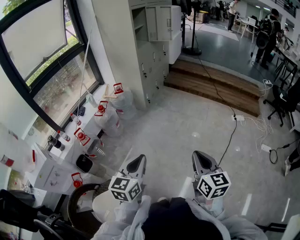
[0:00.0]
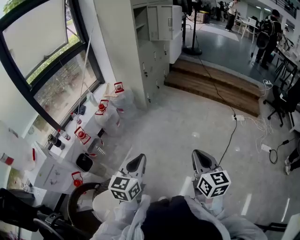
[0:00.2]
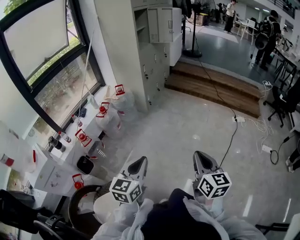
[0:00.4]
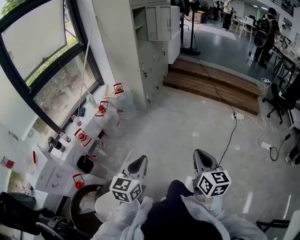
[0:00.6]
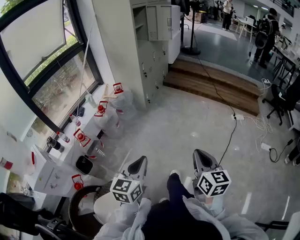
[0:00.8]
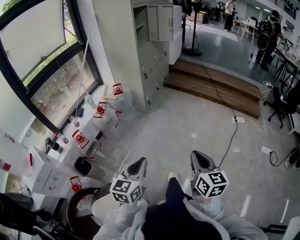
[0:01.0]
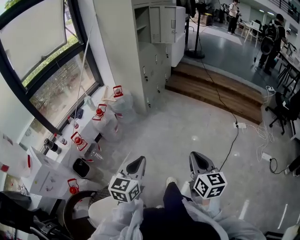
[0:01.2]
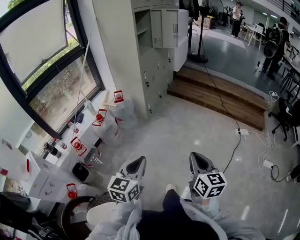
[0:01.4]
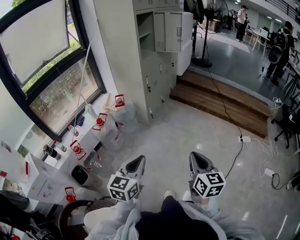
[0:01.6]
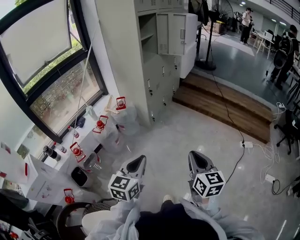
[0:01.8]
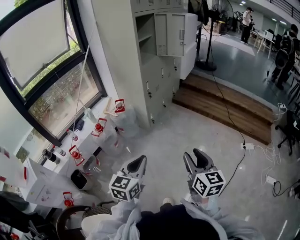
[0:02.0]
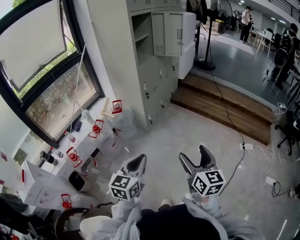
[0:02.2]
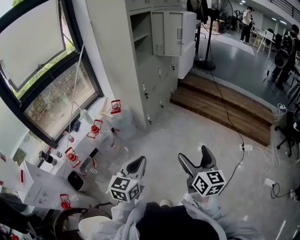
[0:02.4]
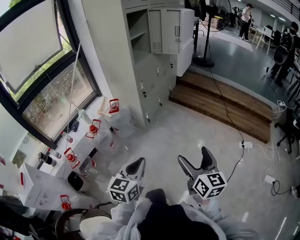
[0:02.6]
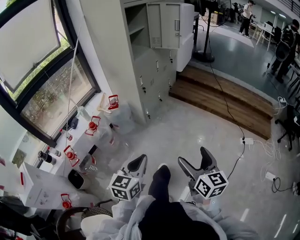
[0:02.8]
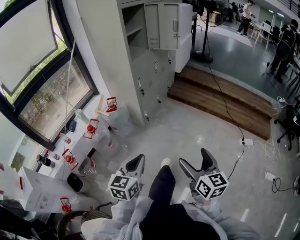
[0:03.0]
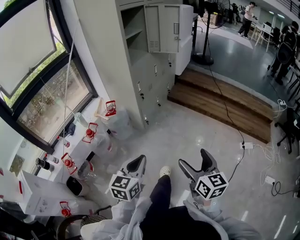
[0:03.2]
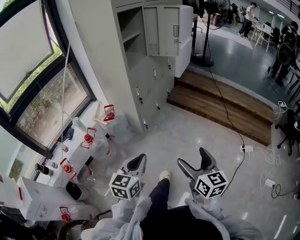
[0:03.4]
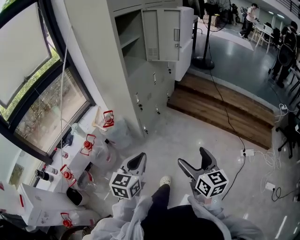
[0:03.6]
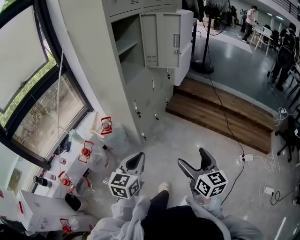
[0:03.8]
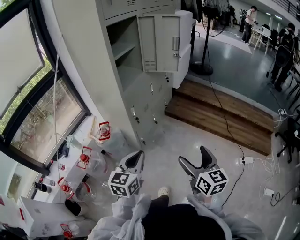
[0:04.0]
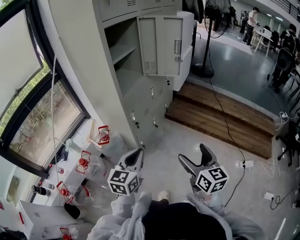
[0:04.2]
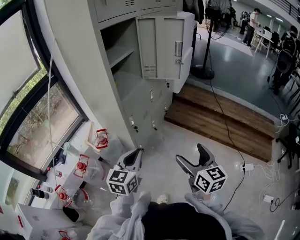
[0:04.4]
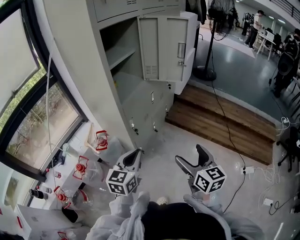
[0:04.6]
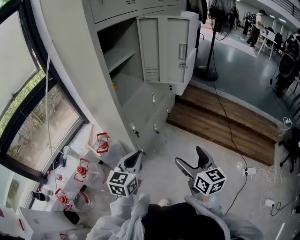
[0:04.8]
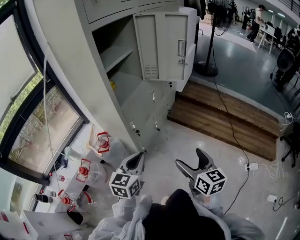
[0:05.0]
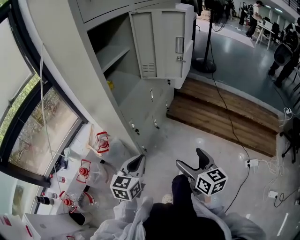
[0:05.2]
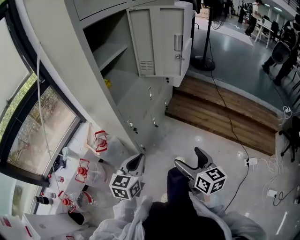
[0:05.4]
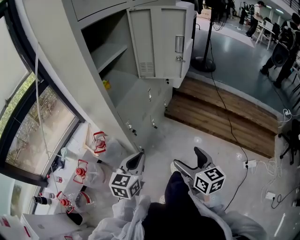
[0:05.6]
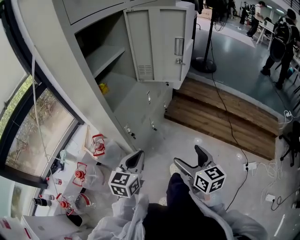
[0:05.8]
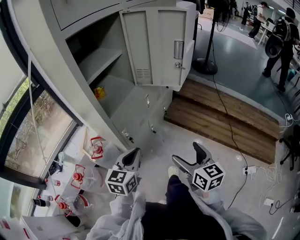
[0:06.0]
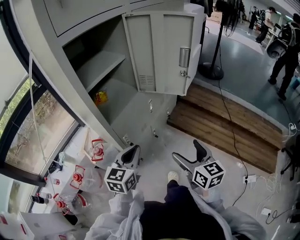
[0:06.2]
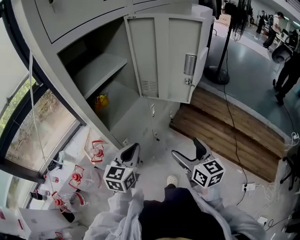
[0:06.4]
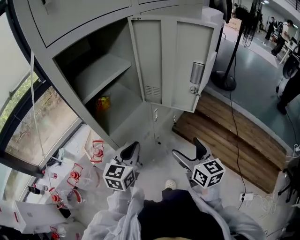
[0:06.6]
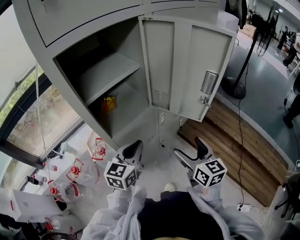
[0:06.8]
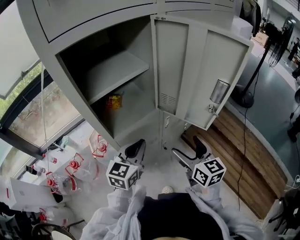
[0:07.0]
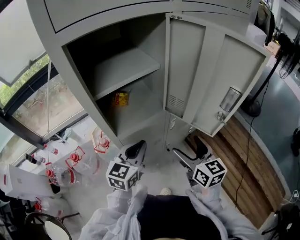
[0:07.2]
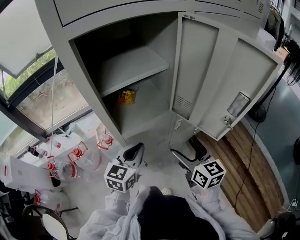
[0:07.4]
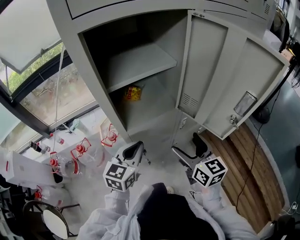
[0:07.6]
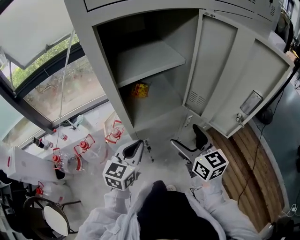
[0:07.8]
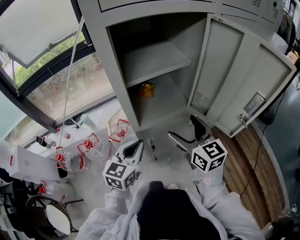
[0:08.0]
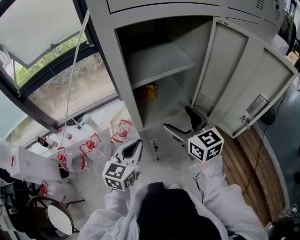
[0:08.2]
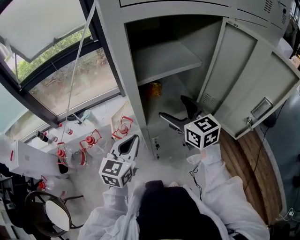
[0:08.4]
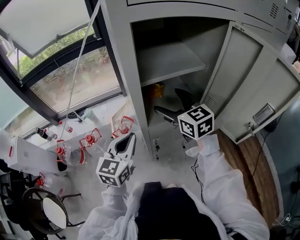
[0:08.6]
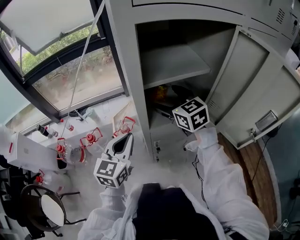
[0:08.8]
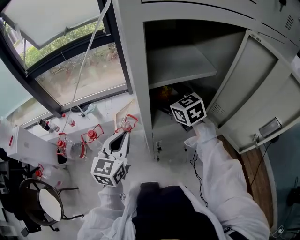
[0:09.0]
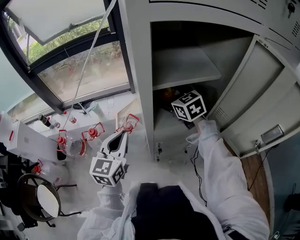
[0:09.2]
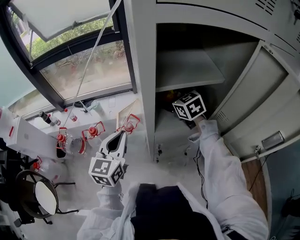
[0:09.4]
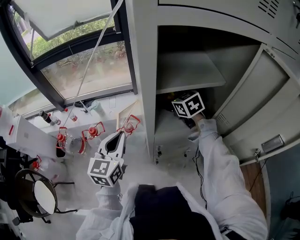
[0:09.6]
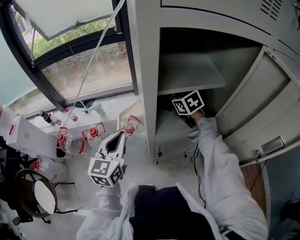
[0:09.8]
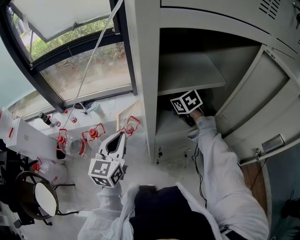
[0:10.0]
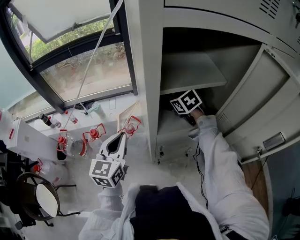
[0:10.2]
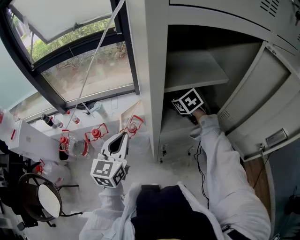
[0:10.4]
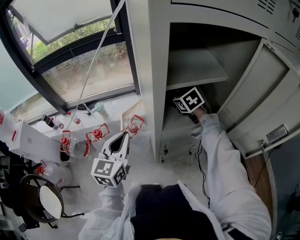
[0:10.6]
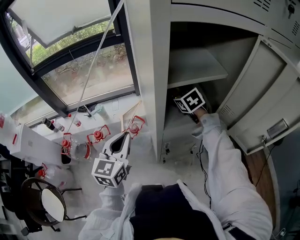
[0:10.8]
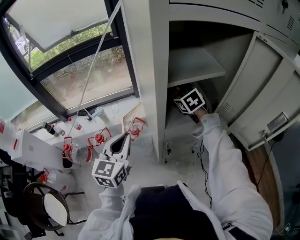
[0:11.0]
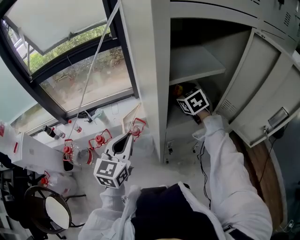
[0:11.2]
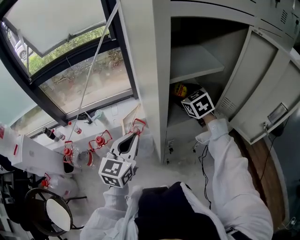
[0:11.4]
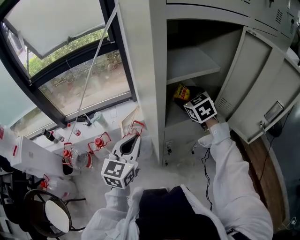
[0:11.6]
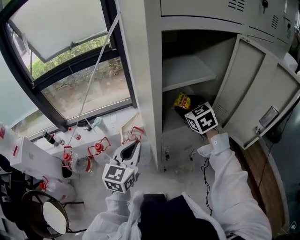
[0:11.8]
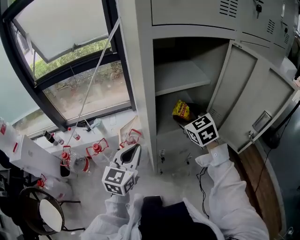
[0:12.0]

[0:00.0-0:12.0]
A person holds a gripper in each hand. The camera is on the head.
0:00.0 to 0:01.6: The two grippers go roughly 20 cm forward.
0:01.6 to 0:03.0: The two grippers go approximately 15 cm forward. The right gripper opens.
0:03.0 to 0:04.4: Both grippers move forward, some 35 cm.
0:04.4 to 0:06.0: The two grippers go roughly 15 cm forward.
0:06.0 to 0:07.6: The left gripper shifts by roughly 15 cm, and changes its angle by approximately 30 degrees, while the right gripper changes place by some 25 cm, and changes its angle by roughly 30 degrees.
0:07.6 to 0:09.0: The left gripper heads to the left, covering approximately 15 cm. Meanwhile the right gripper moves forward and to the left, about 30 cm, and swivels roughly 30 degrees.
0:09.0 to 0:10.4: The right gripper travels downward and forward by about 10 cm, and swivels about 20 degrees.
0:10.4 to 0:12.0: The left gripper travels to the right and backward by about 10 cm; the right gripper shifts about 15 cm backward, upward and to the right.

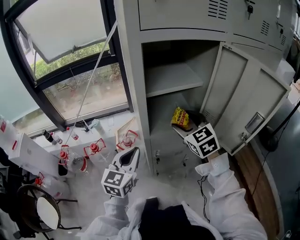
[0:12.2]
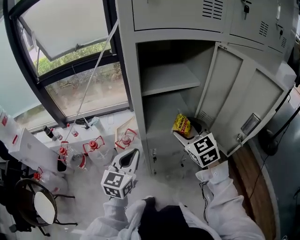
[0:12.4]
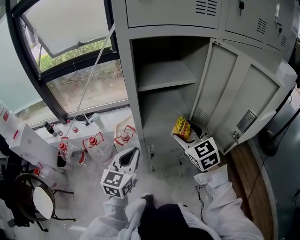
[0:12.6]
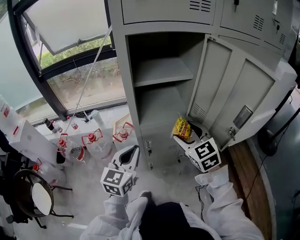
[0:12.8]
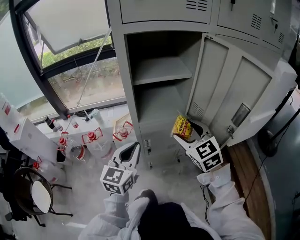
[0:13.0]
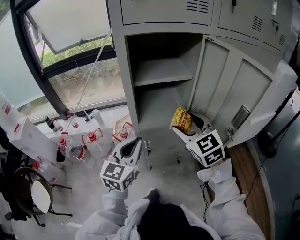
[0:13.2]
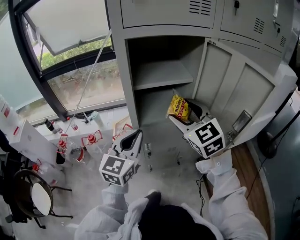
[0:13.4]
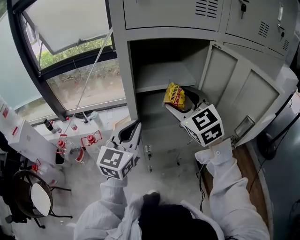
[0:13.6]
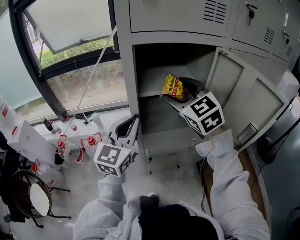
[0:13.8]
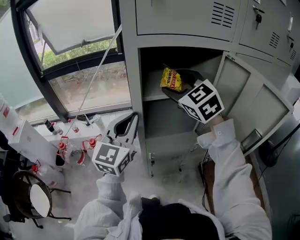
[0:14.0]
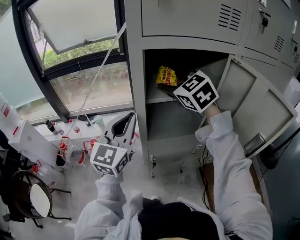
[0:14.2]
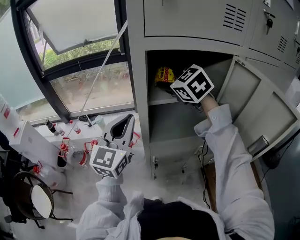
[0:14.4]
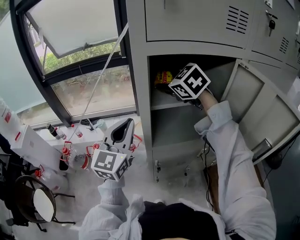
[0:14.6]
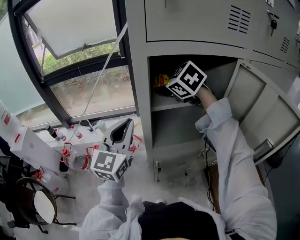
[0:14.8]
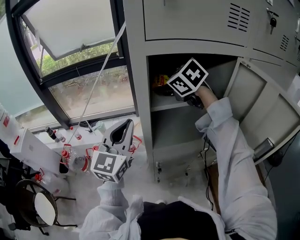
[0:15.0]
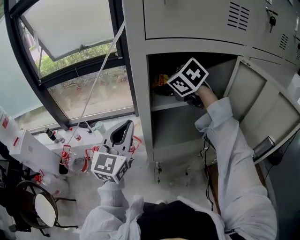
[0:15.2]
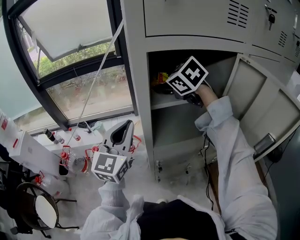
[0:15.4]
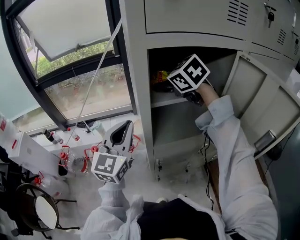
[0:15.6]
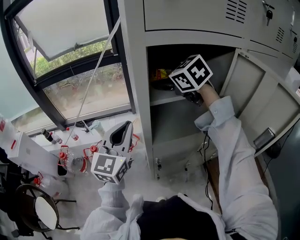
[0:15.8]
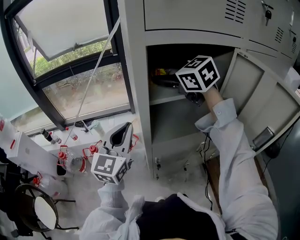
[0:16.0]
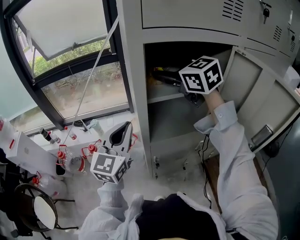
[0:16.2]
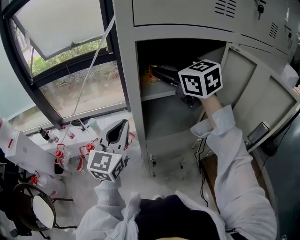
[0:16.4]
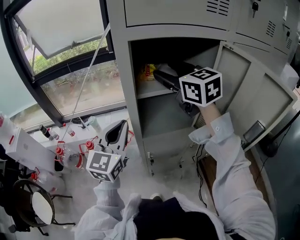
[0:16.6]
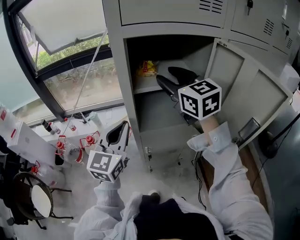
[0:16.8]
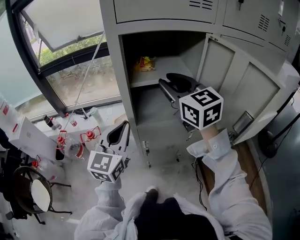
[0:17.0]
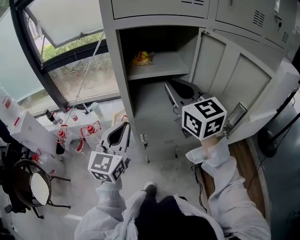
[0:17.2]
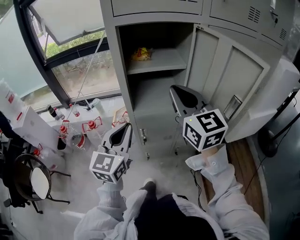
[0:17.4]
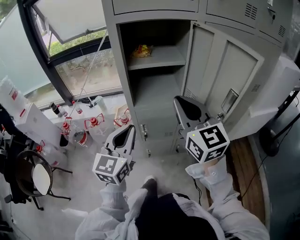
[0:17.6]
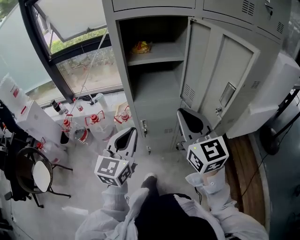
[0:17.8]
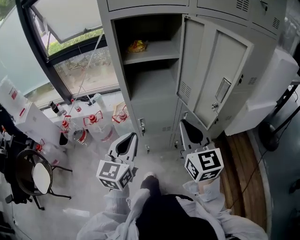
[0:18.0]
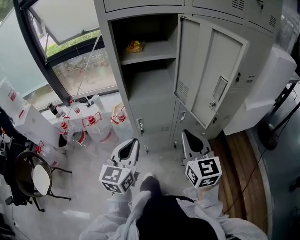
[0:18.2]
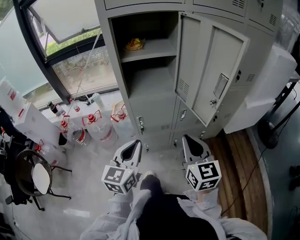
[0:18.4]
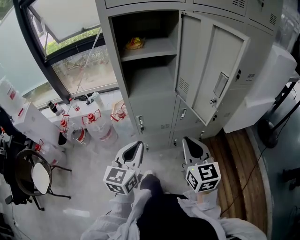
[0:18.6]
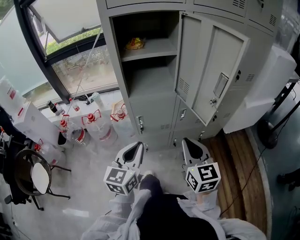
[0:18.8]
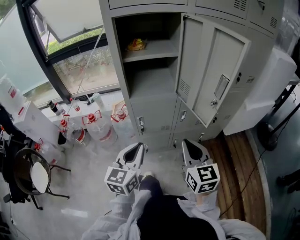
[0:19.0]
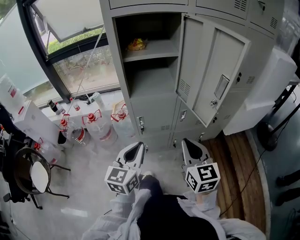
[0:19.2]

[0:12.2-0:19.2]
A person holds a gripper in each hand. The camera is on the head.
0:12.2 to 0:13.6: The left gripper is displaced upward and to the right by some 15 cm. Meanwhile the right gripper heads upward, covering roughly 10 cm.
0:13.6 to 0:15.0: The left gripper travels forward and to the left by roughly 10 cm; the right gripper moves forward and to the left, roughly 20 cm, and rotates approximately 30 degrees.
0:15.0 to 0:16.4: The right gripper goes some 5 cm upward, and turns by about 30 degrees.
0:16.4 to 0:17.8: Both grippers move backward, approximately 25 cm. The right gripper closes its fingers.
0:17.8 to 0:19.2: The right gripper heads downward and backward, covering some 15 cm. Meanwhile the left gripper heads downward, covering about 10 cm.

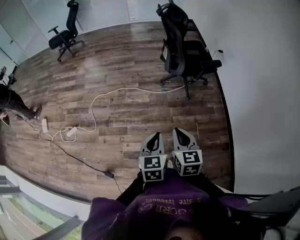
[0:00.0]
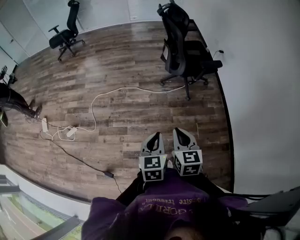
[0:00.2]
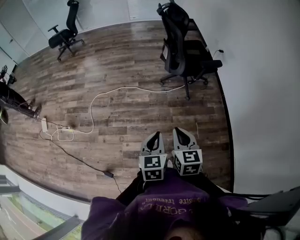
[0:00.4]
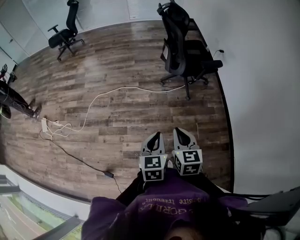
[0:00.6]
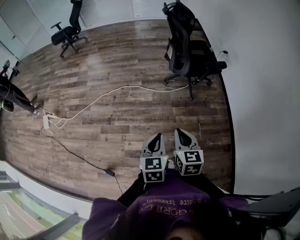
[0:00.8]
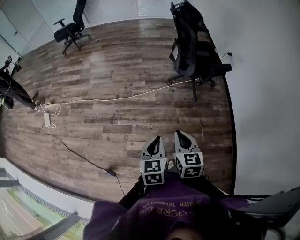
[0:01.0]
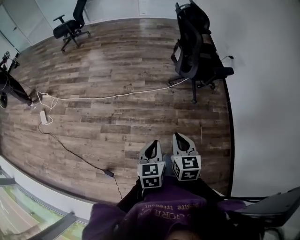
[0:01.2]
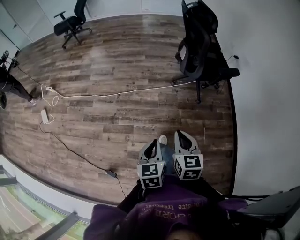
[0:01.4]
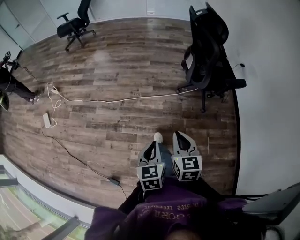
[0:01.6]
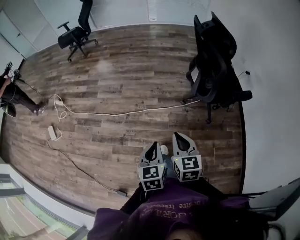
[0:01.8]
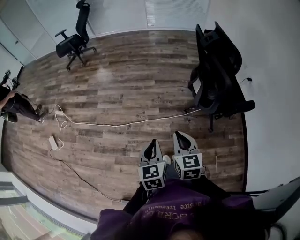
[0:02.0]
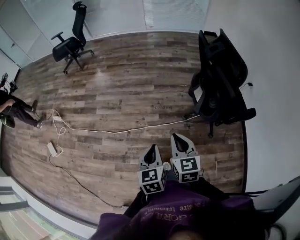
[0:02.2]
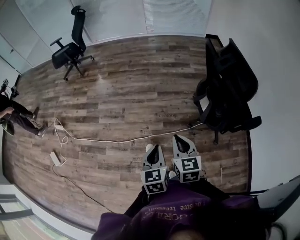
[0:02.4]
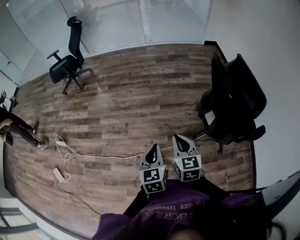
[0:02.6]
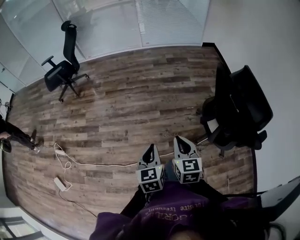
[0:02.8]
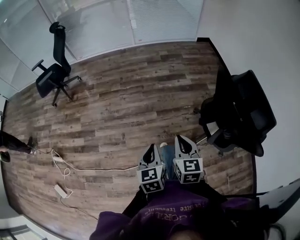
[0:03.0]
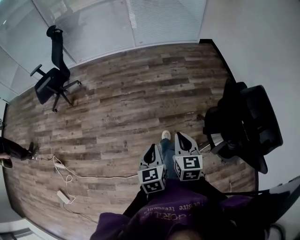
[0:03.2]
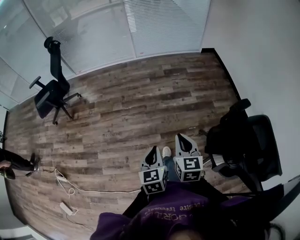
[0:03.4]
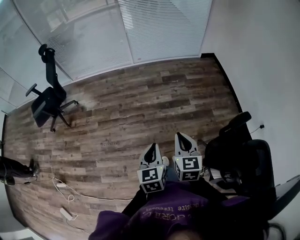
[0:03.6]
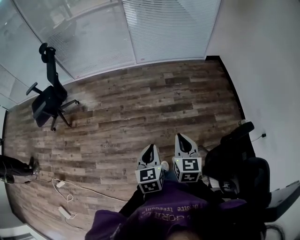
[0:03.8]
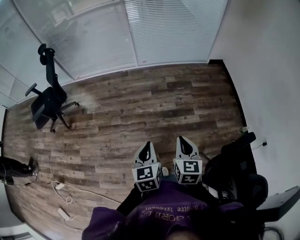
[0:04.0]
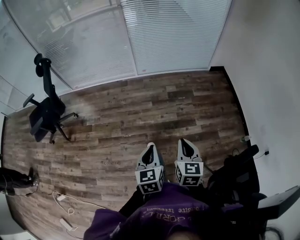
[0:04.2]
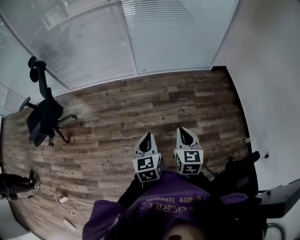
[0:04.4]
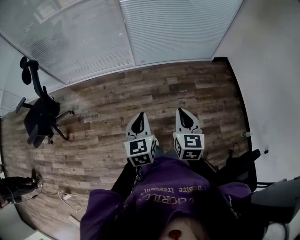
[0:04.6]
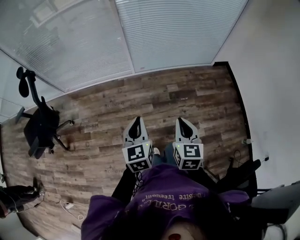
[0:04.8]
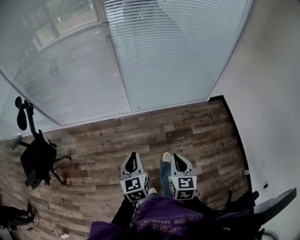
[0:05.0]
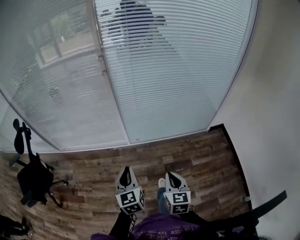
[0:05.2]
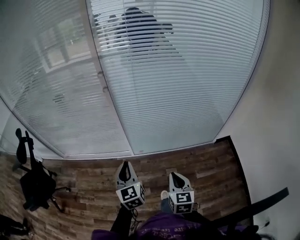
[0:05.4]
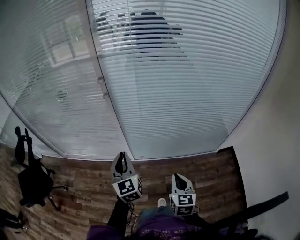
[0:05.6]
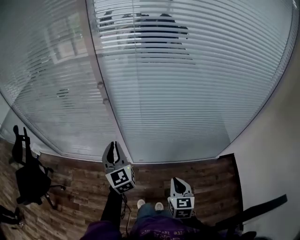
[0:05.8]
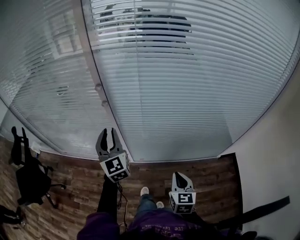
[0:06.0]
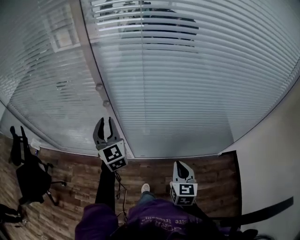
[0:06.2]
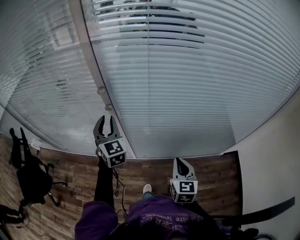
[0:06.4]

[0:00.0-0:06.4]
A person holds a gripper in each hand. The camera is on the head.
0:00.0 to 0:01.6: The two grippers go about 20 cm forward and to the left.
0:01.6 to 0:03.2: Both grippers are carried forward, roughly 80 cm.
0:03.2 to 0:04.8: Both grippers are carried forward, some 80 cm.
0:04.8 to 0:06.4: Both grippers are carried forward, some 70 cm. The left gripper swivels roughly 30 degrees.
